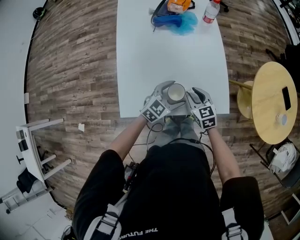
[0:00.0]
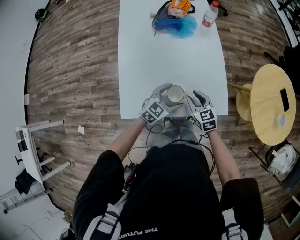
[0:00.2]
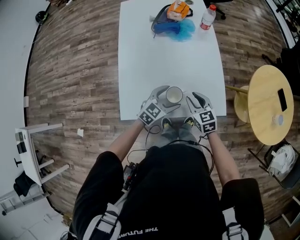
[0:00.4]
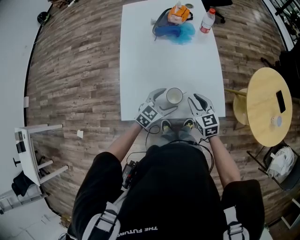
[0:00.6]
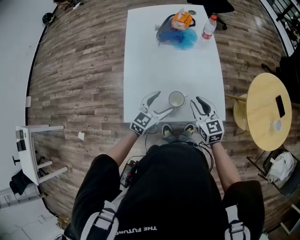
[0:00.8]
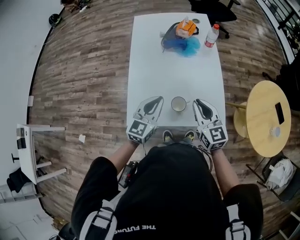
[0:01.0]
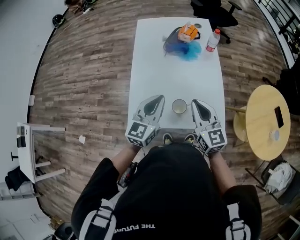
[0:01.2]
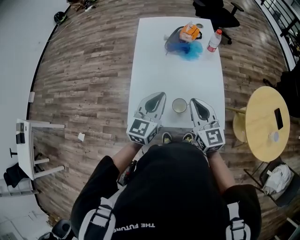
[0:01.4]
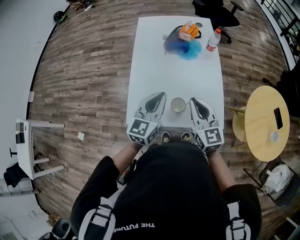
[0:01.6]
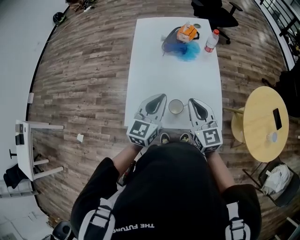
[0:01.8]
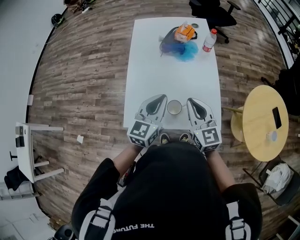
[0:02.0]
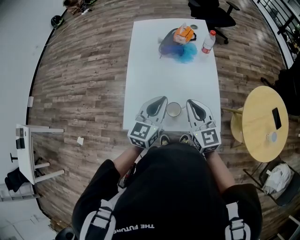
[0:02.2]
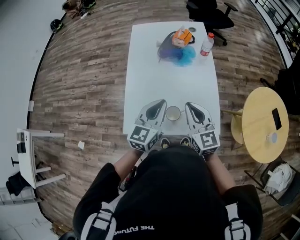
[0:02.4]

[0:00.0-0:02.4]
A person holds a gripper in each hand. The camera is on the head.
0:00.0 to 0:01.2: The right gripper shifts about 25 cm upward, turns by roughly 30 degrees, and closes its fingers; the left gripper moves upward and to the left, about 25 cm, rotates some 40 degrees, and closes its fingers.
0:01.2 to 0:02.4: The grippers stay close to where they were, moving slightly.

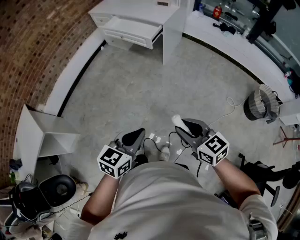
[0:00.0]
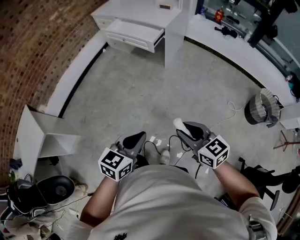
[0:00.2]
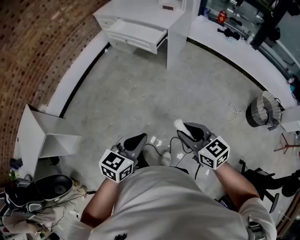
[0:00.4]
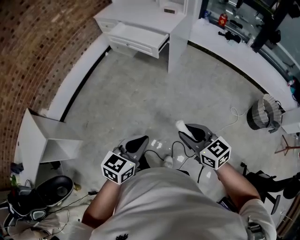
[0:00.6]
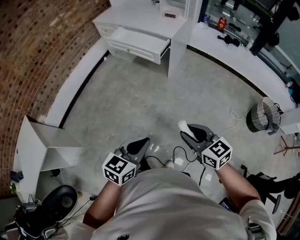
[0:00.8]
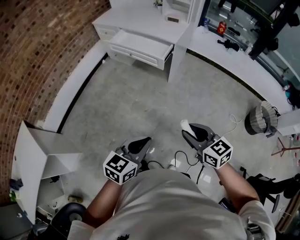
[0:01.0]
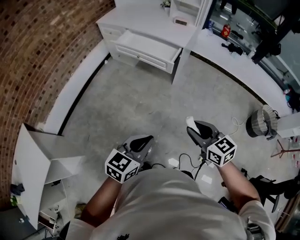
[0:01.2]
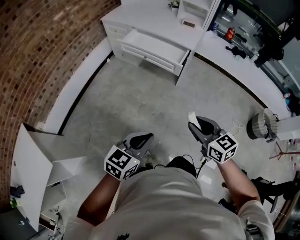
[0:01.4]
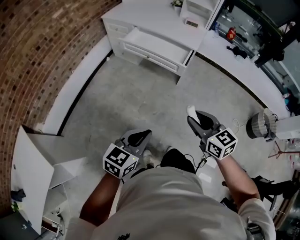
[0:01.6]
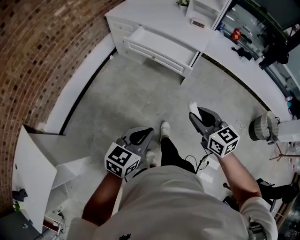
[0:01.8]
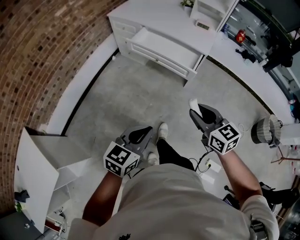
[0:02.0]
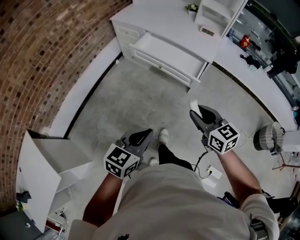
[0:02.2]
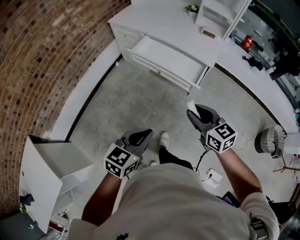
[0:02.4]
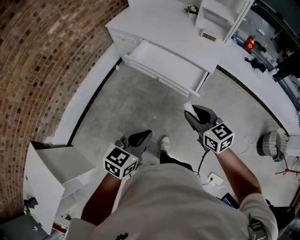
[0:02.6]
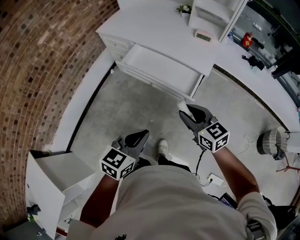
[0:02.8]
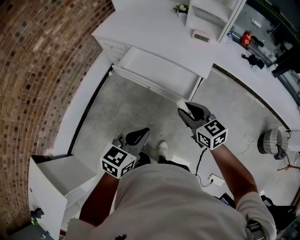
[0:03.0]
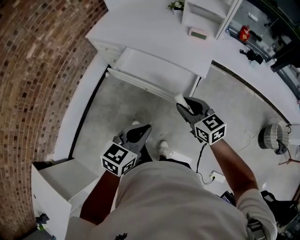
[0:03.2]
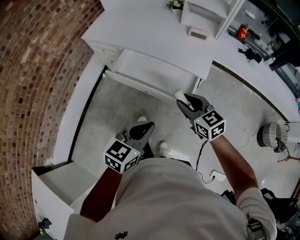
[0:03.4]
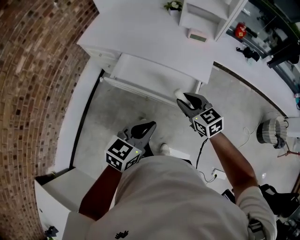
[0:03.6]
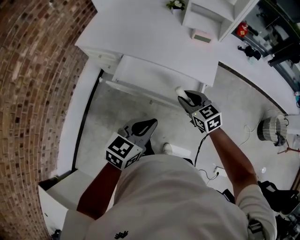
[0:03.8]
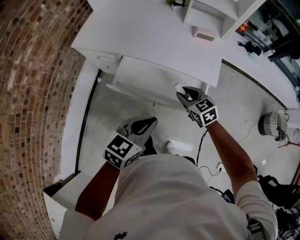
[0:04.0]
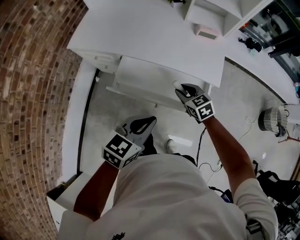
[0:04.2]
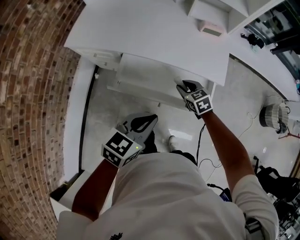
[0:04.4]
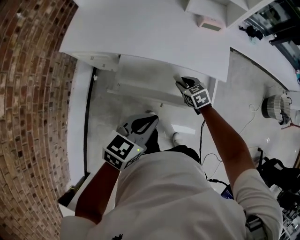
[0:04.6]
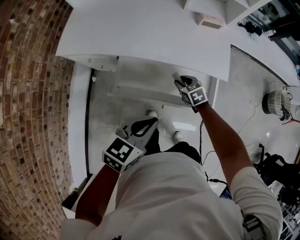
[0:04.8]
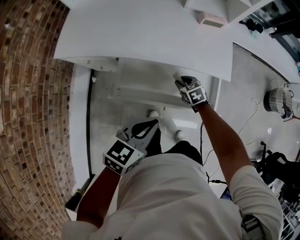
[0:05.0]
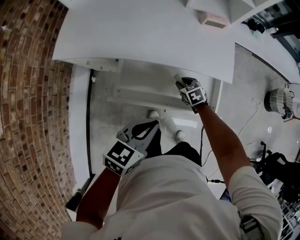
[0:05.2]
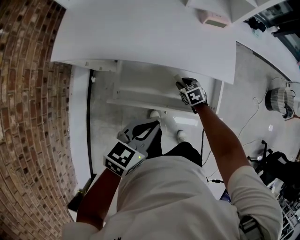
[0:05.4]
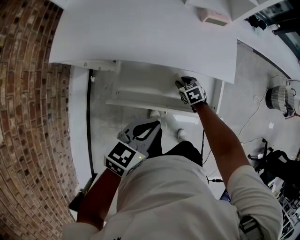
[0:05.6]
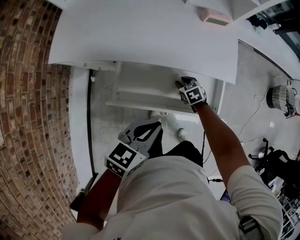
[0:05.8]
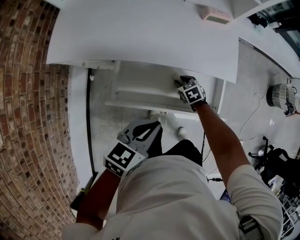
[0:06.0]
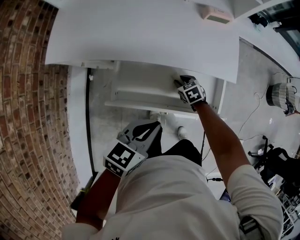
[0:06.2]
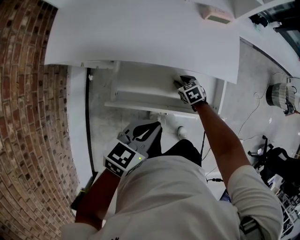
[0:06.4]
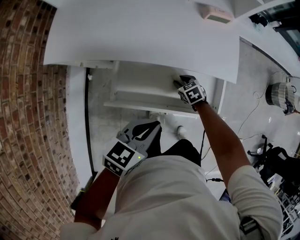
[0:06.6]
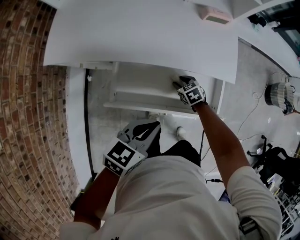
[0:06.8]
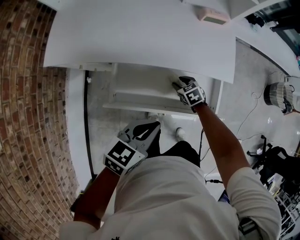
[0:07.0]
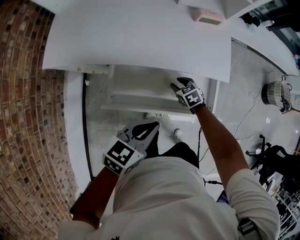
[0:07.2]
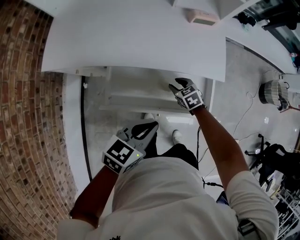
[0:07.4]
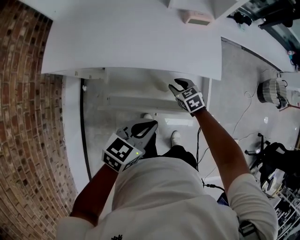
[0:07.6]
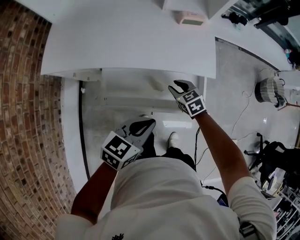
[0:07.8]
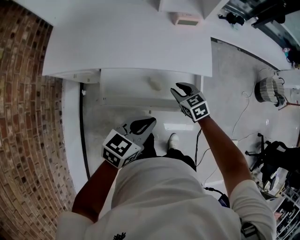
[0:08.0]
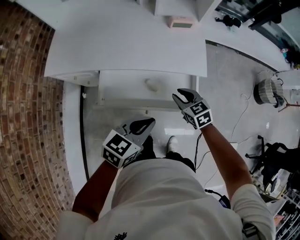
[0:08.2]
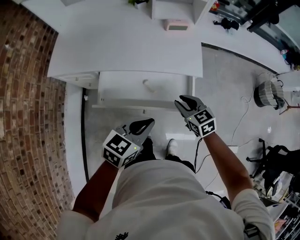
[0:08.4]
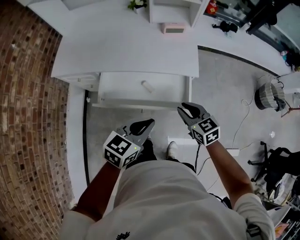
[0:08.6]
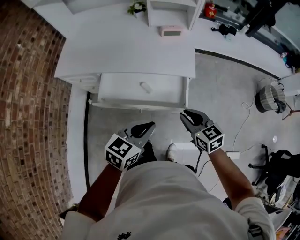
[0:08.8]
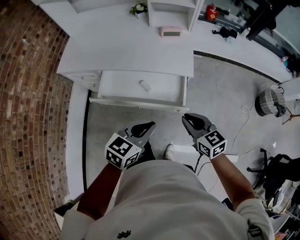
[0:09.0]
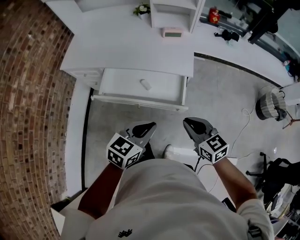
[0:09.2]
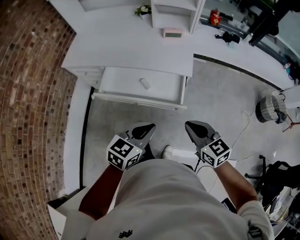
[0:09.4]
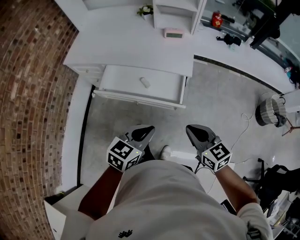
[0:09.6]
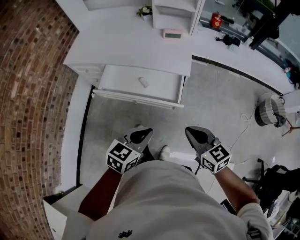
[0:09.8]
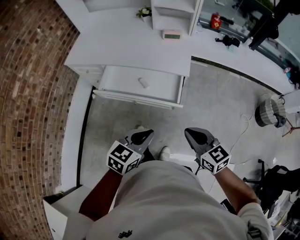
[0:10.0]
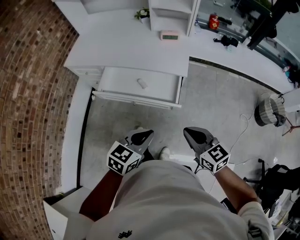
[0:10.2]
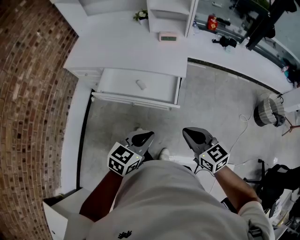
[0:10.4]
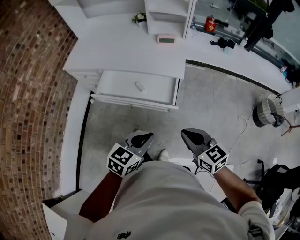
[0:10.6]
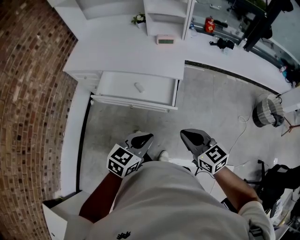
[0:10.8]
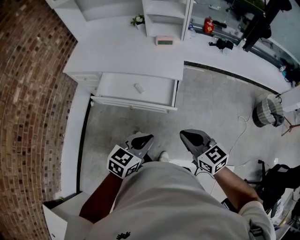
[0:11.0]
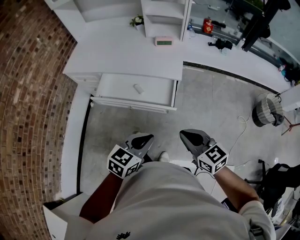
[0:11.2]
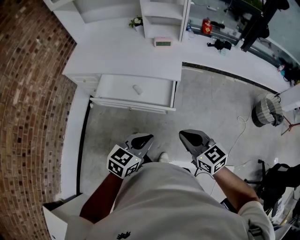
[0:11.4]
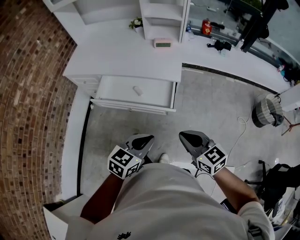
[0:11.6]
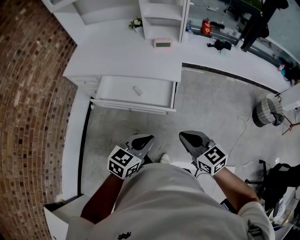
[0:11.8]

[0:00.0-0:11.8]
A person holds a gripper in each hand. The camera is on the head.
0:00.0 to 0:01.4: The left gripper travels to the left and forward by approximately 30 cm. The right gripper heads forward and to the left, covering about 30 cm.
0:01.4 to 0:03.0: Both grippers move forward, roughly 40 cm.
0:03.0 to 0:04.4: The right gripper moves forward and downward, about 35 cm, and swivels about 30 degrees; the left gripper goes roughly 30 cm forward and to the left, and turns by about 20 degrees.
0:04.4 to 0:06.0: The right gripper heads downward, covering about 15 cm. The left gripper is displaced downward and forward by about 10 cm.
0:06.0 to 0:07.4: The right gripper shifts approximately 5 cm upward.
0:07.4 to 0:08.8: The left gripper is displaced to the right, backward and upward by about 20 cm, while the right gripper goes some 35 cm upward, to the right and backward, and turns by about 30 degrees.
0:08.8 to 0:10.4: The left gripper moves backward and to the right, approximately 15 cm, while the right gripper travels backward, upward and to the right by approximately 15 cm.
0:10.4 to 0:11.8: The grippers make only small movements.

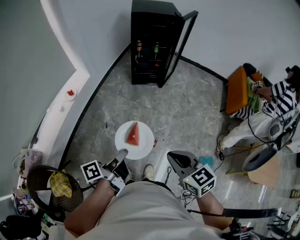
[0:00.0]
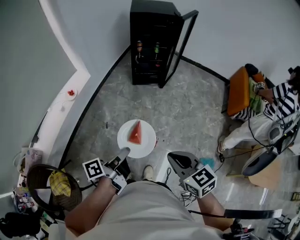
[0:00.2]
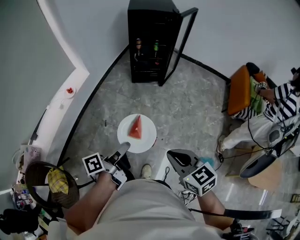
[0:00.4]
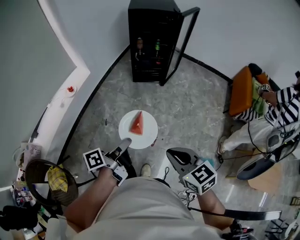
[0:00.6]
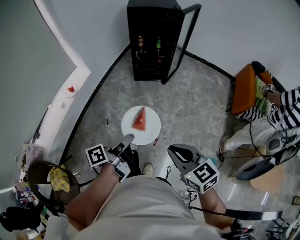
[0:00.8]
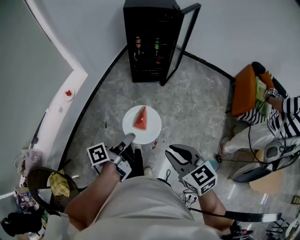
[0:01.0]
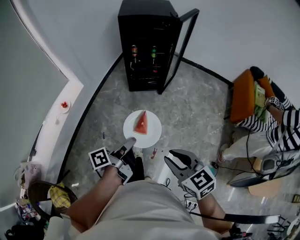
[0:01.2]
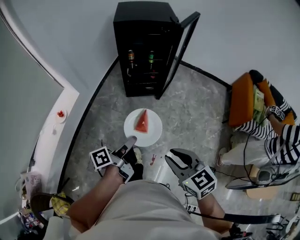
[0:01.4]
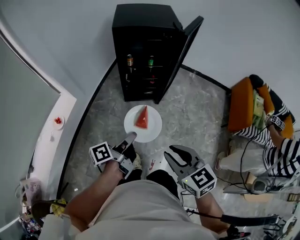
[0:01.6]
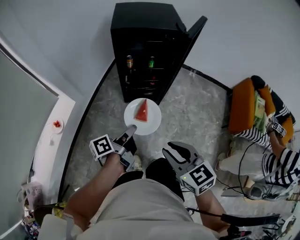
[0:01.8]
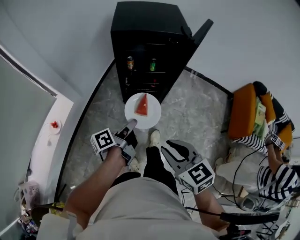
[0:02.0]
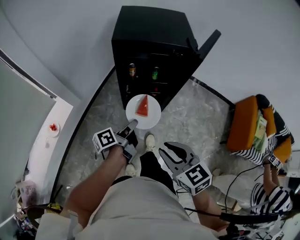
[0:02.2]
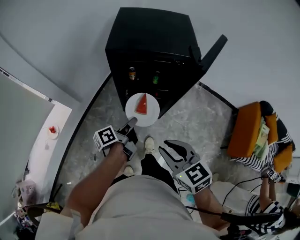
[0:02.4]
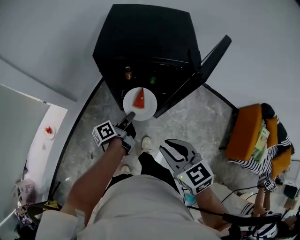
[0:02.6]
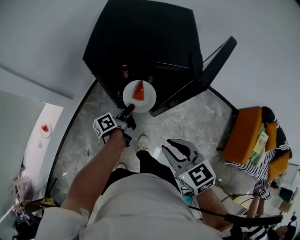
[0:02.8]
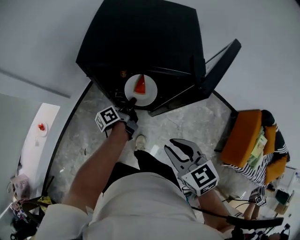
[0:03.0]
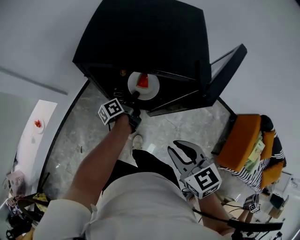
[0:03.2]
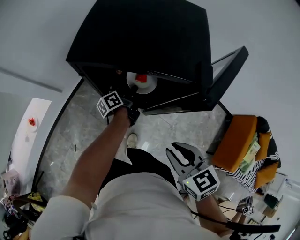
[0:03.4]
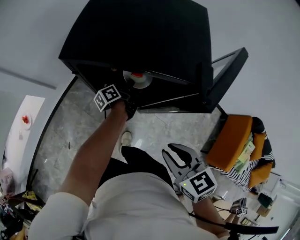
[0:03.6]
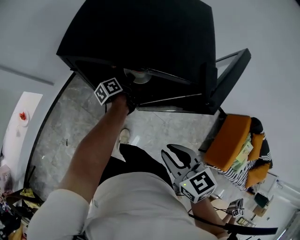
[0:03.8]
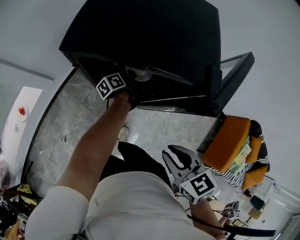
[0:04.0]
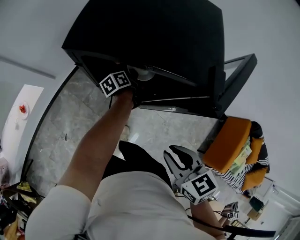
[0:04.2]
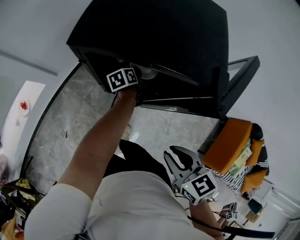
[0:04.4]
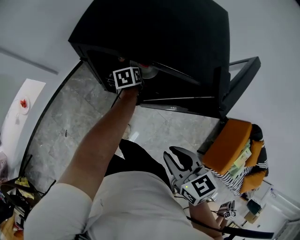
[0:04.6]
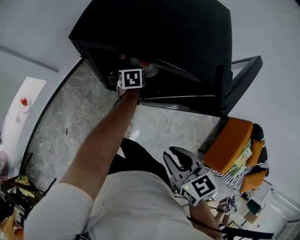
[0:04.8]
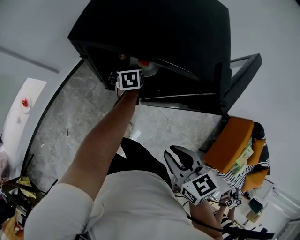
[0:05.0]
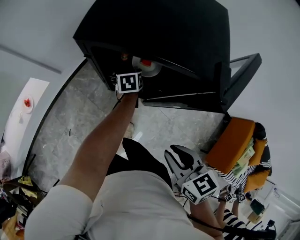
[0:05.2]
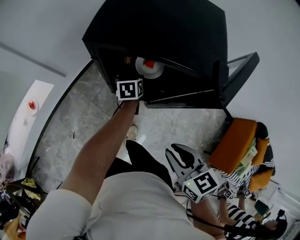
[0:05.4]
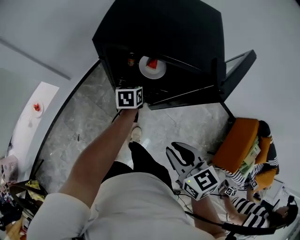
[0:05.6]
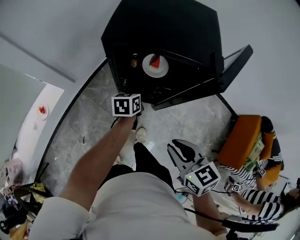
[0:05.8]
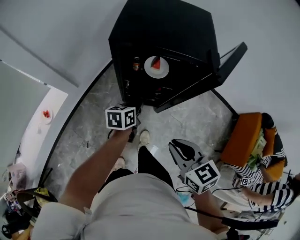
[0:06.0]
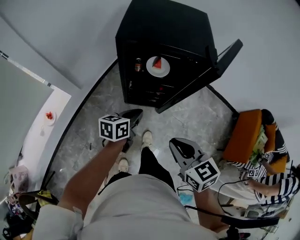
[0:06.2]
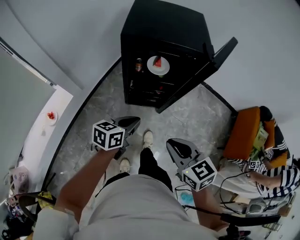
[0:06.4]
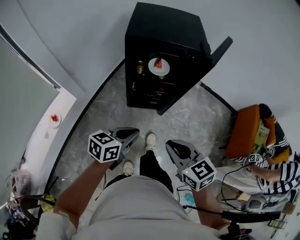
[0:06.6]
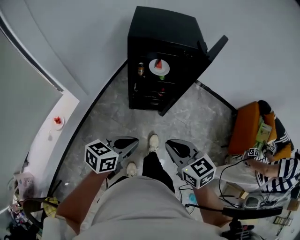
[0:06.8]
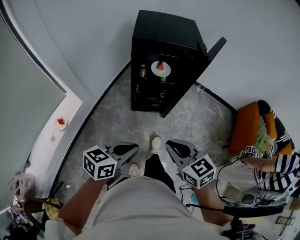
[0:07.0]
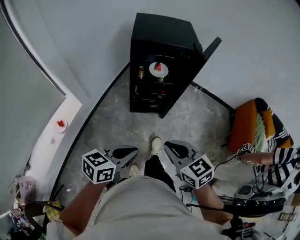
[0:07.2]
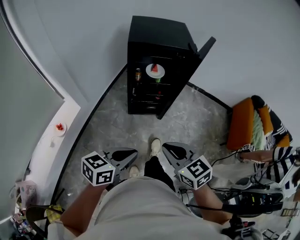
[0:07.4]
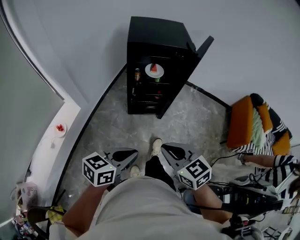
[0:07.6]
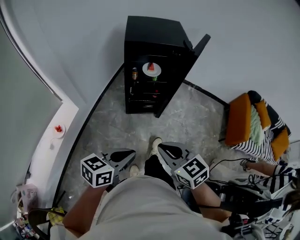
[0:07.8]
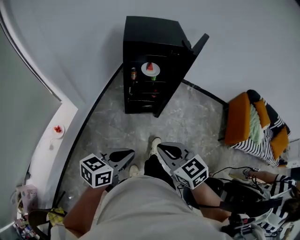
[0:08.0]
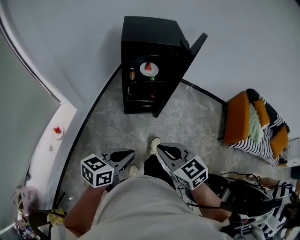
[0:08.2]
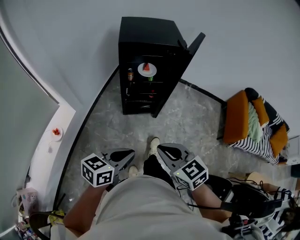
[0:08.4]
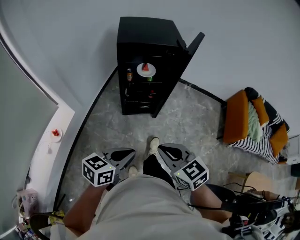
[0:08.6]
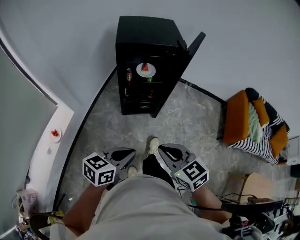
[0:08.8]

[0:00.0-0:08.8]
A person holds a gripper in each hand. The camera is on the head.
0:00.0 to 0:01.4: The left gripper goes some 35 cm forward and to the right, while the right gripper shifts about 25 cm forward.
0:01.4 to 0:03.0: The pair of grippers is taken forward, about 50 cm.
0:03.0 to 0:04.4: The left gripper shifts some 15 cm forward and downward, and turns by approximately 30 degrees.
0:04.4 to 0:05.8: The right gripper heads to the left, covering some 5 cm; the left gripper shifts about 20 cm backward, upward and to the left, and rotates about 30 degrees.
0:05.8 to 0:07.4: The left gripper shifts some 50 cm backward and upward, rotates about 40 degrees, and closes; the right gripper is displaced backward and to the left by approximately 25 cm.
0:07.4 to 0:08.8: The grippers move only a little.
